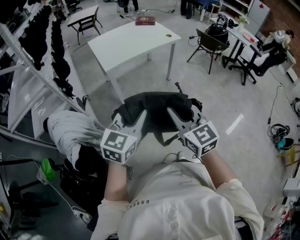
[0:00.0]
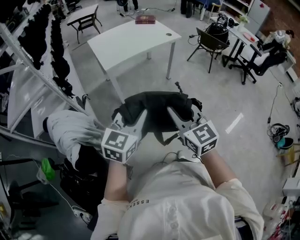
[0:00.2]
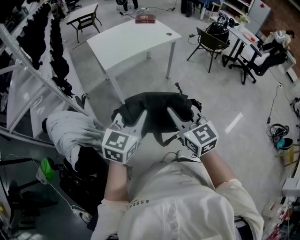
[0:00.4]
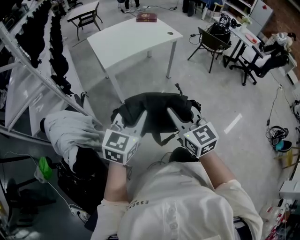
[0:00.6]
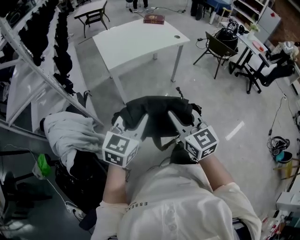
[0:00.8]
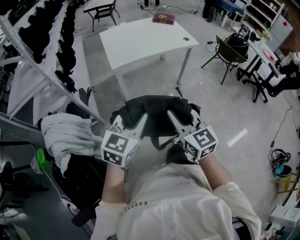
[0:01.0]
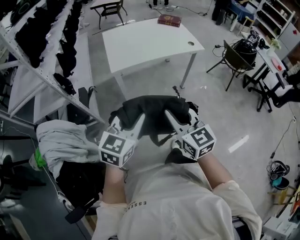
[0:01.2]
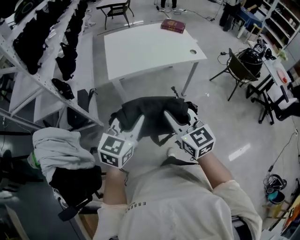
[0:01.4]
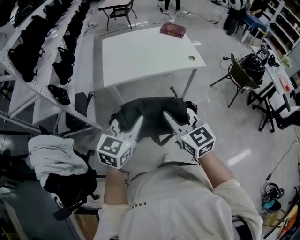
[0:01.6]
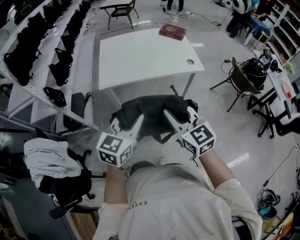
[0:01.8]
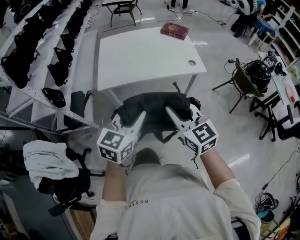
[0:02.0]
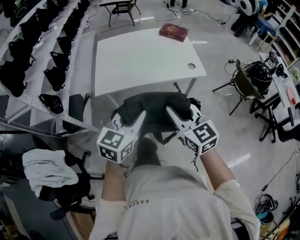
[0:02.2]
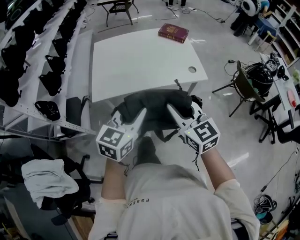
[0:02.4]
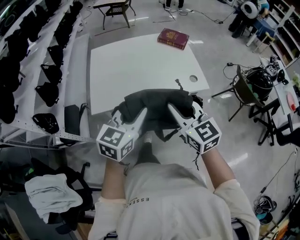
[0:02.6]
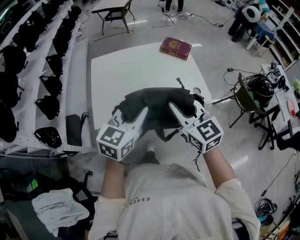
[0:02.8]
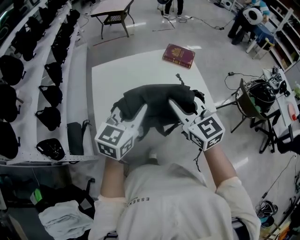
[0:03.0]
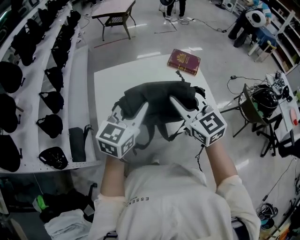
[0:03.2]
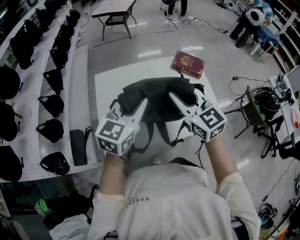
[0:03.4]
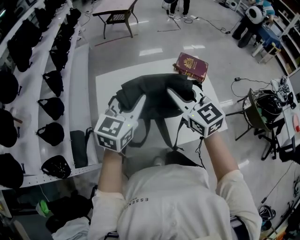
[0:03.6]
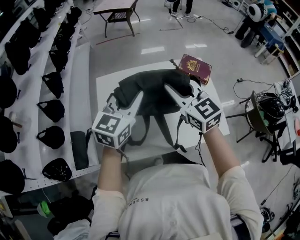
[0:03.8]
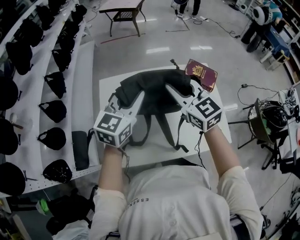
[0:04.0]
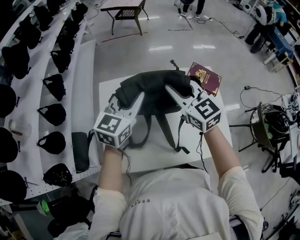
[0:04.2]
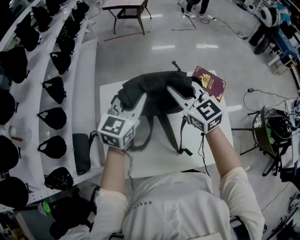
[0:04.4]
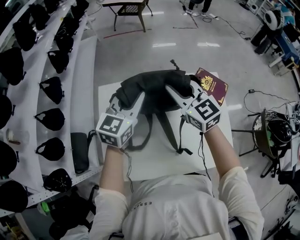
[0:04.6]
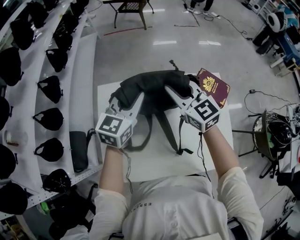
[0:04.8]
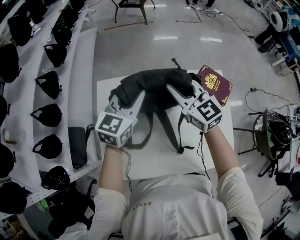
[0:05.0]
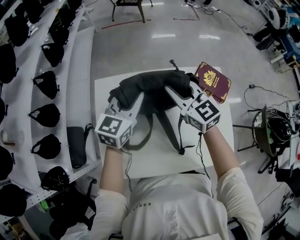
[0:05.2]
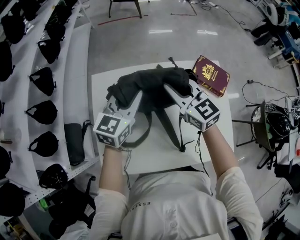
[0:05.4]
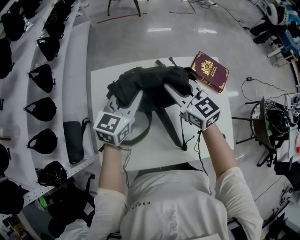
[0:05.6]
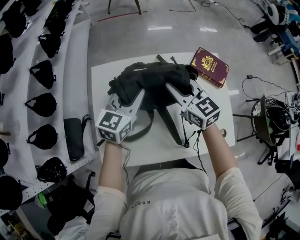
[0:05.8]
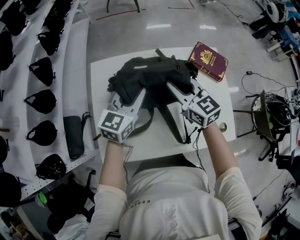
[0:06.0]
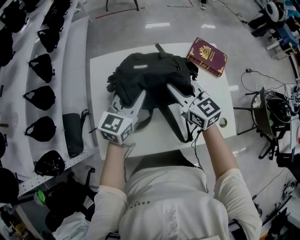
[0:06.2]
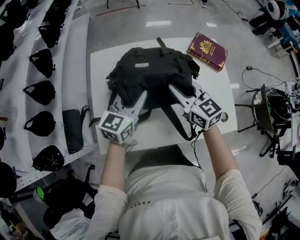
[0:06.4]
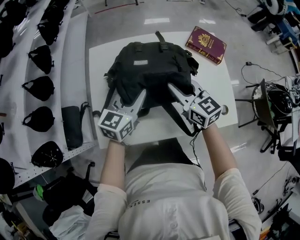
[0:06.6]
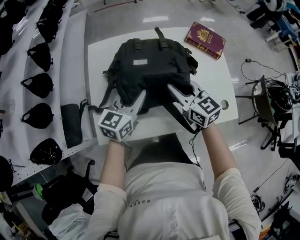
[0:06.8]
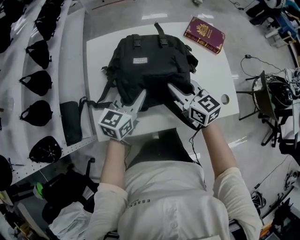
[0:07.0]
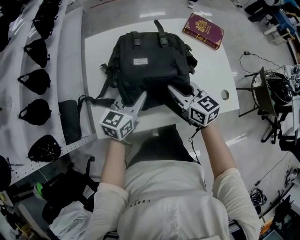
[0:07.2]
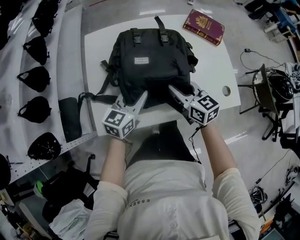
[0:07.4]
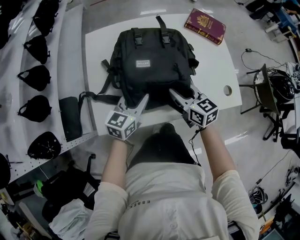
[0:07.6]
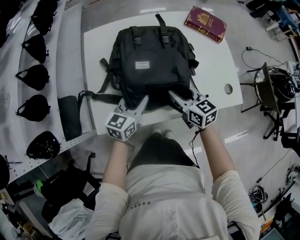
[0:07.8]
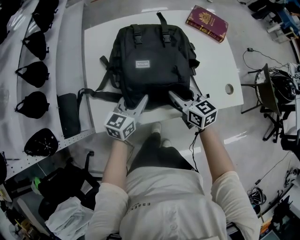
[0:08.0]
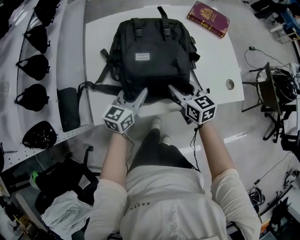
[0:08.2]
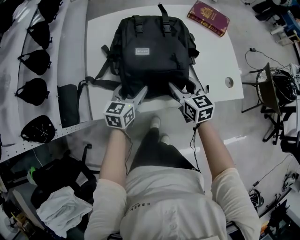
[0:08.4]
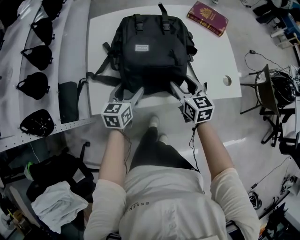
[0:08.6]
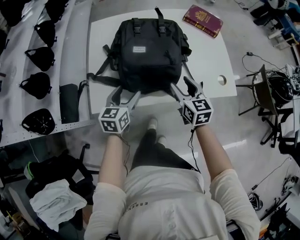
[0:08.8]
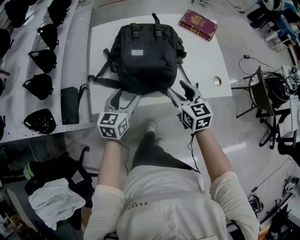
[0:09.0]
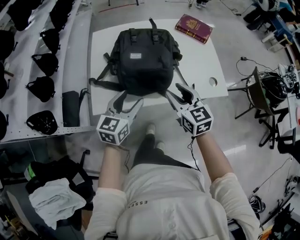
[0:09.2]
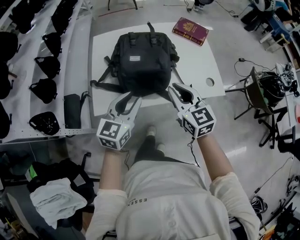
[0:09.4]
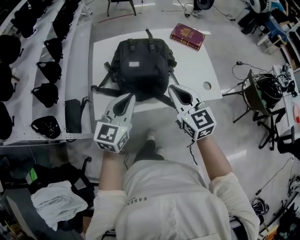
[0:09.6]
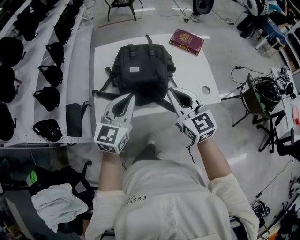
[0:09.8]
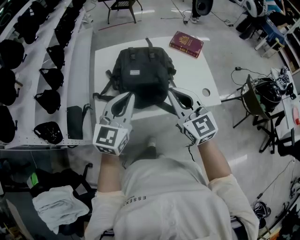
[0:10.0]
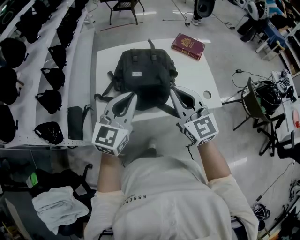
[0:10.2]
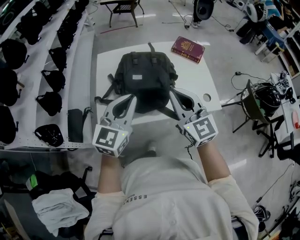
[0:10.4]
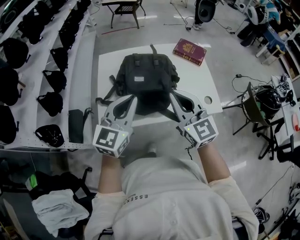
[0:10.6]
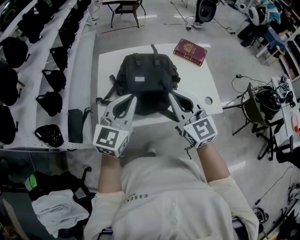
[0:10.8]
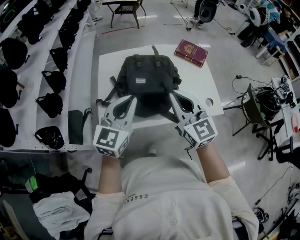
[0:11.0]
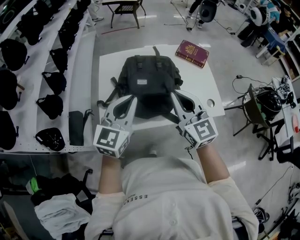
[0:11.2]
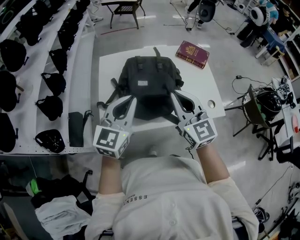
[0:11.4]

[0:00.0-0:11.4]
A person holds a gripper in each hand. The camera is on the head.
0:00.0 to 0:01.4: Both grippers move forward, some 20 cm.
0:01.4 to 0:02.8: The two grippers go some 40 cm forward.
0:02.8 to 0:04.2: The two grippers go some 40 cm forward.
0:04.2 to 0:05.6: Both grippers travel together downward, approximately 10 cm.
0:05.6 to 0:07.2: The grippers both shift backward and downward by about 20 cm.
0:07.2 to 0:08.6: The grippers both shift downward and backward by about 10 cm. The left gripper opens. Meanwhile the right gripper opens up.
0:08.6 to 0:10.0: Both grippers travel together upward, about 25 cm. The right gripper rotates some 30 degrees, and closes up, while the left gripper turns by about 30 degrees, and closes up.
0:10.0 to 0:11.4: The left gripper ends up some 5 cm from where it was. The right gripper moves about 5 cm.

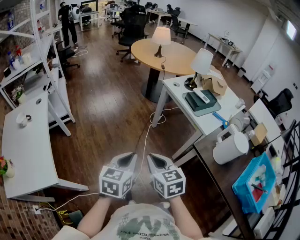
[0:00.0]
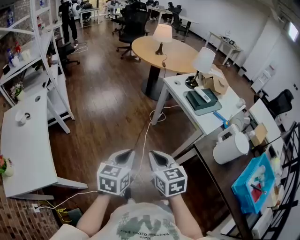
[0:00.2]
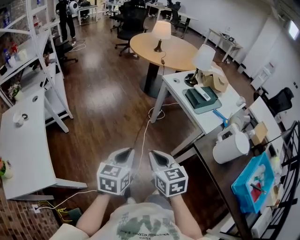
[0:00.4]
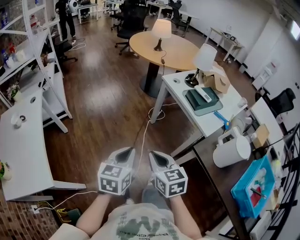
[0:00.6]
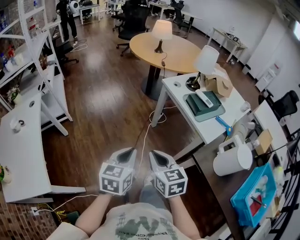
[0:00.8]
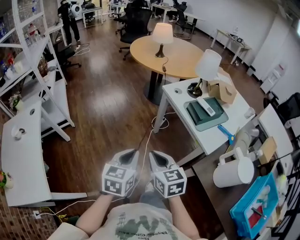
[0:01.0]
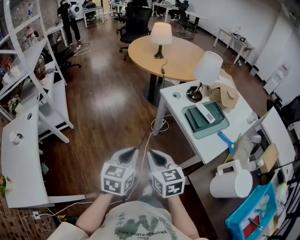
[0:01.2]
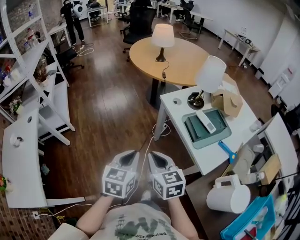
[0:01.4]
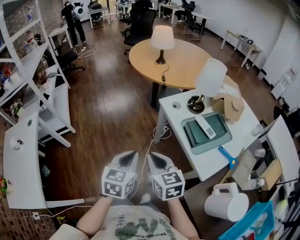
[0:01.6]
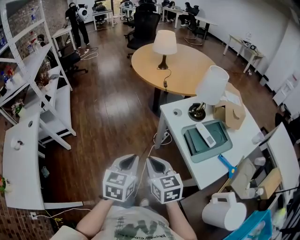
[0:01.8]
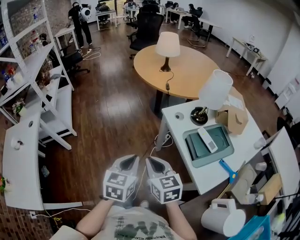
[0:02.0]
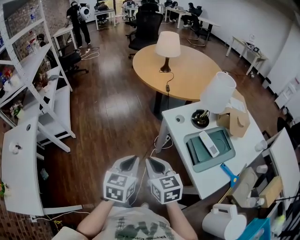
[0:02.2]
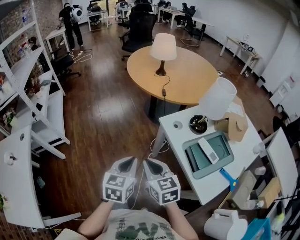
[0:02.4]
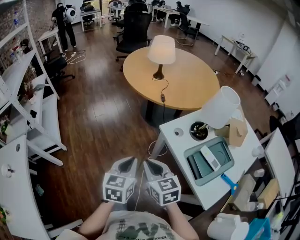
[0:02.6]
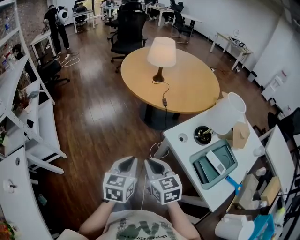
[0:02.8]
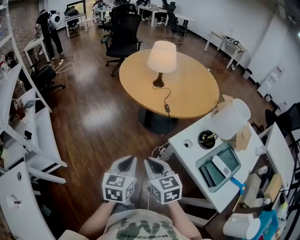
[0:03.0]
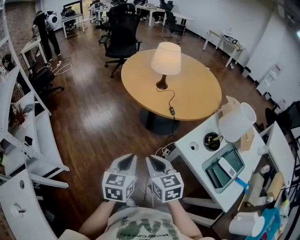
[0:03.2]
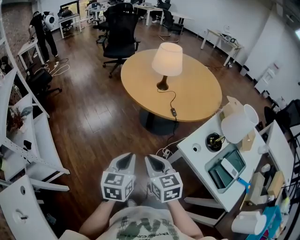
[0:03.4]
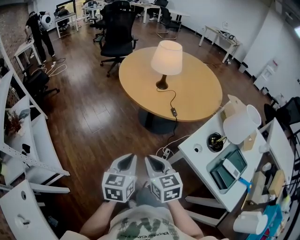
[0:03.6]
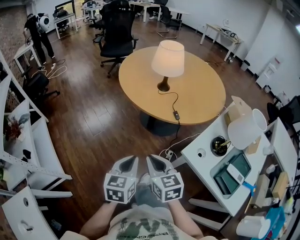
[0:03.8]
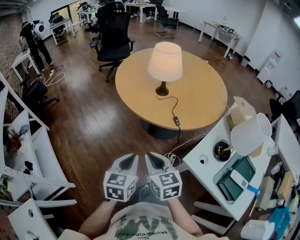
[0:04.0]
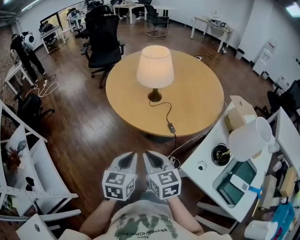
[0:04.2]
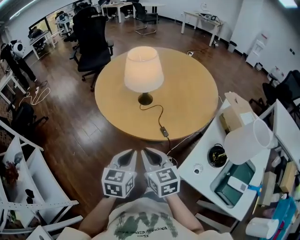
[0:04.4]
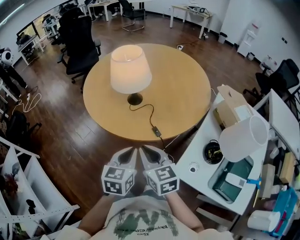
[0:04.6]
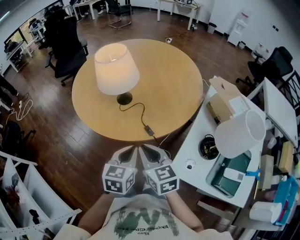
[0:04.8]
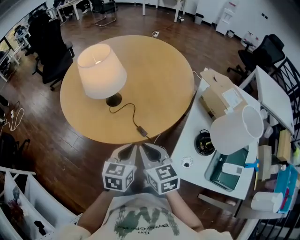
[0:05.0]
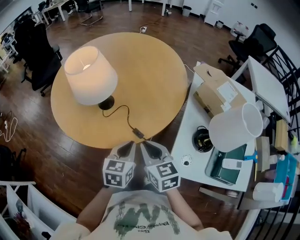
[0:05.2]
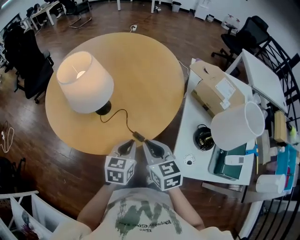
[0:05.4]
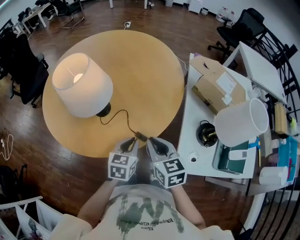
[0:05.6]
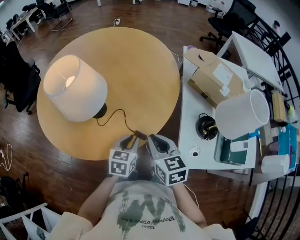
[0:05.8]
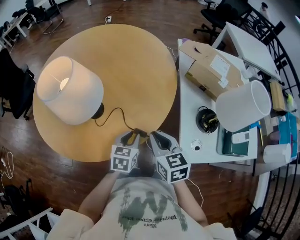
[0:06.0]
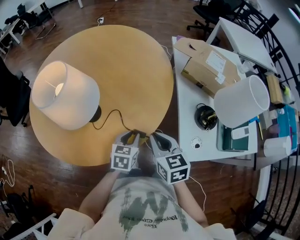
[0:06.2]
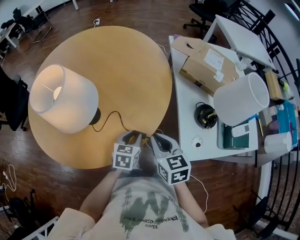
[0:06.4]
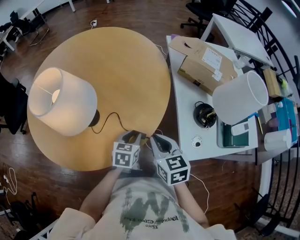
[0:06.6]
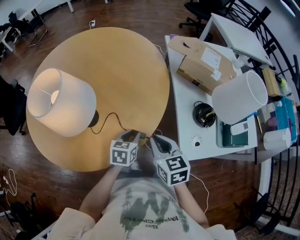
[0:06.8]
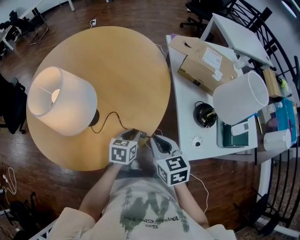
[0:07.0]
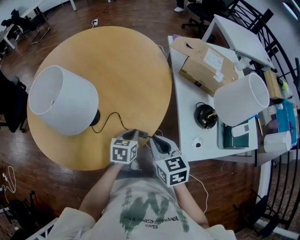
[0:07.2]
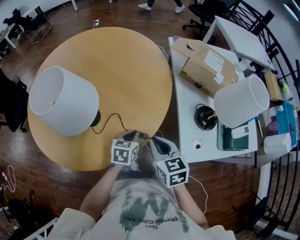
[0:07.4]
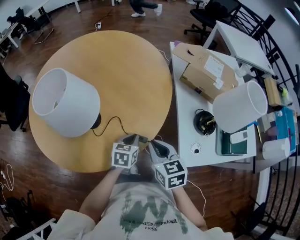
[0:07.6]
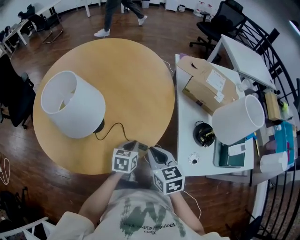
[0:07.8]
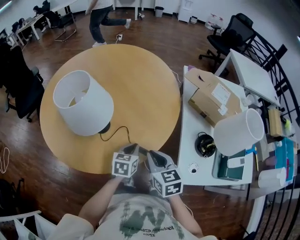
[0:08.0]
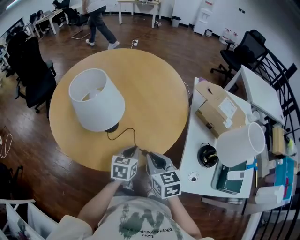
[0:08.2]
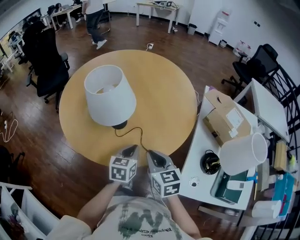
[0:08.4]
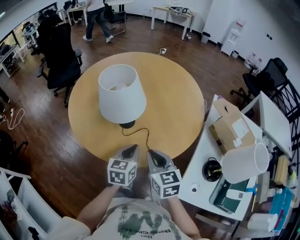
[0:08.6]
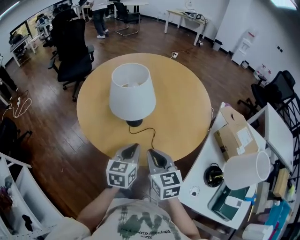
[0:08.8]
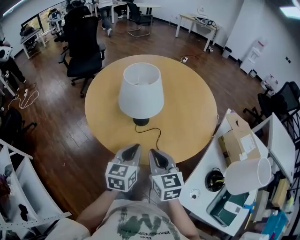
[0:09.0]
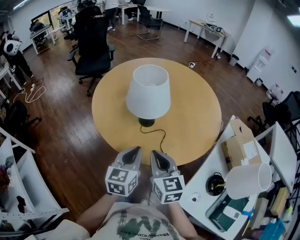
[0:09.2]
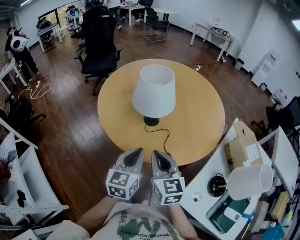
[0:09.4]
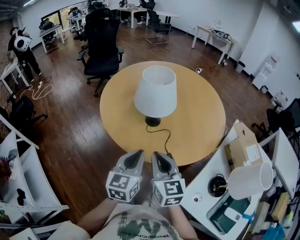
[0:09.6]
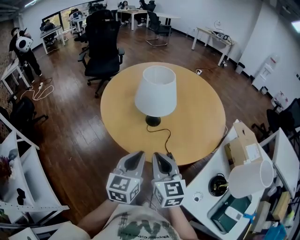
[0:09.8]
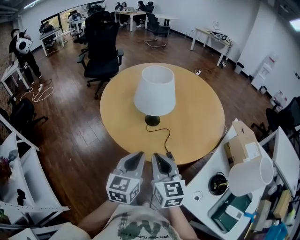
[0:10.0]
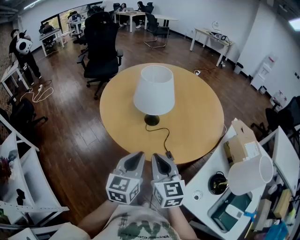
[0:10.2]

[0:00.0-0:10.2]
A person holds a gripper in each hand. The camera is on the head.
0:00.0 to 0:01.4: The grippers both shift forward and to the right by approximately 30 cm.
0:01.4 to 0:03.0: The grippers both shift forward by some 30 cm.
0:03.0 to 0:04.4: Both grippers travel together forward, roughly 30 cm.
0:04.4 to 0:05.8: The right gripper shifts by about 20 cm, and swivels some 40 degrees; the left gripper moves about 25 cm, and changes its angle by roughly 40 degrees.
0:05.8 to 0:07.2: The left gripper moves about 5 cm.
0:07.2 to 0:08.8: The right gripper shifts by approximately 15 cm, and changes its angle by about 40 degrees; the left gripper shifts roughly 15 cm upward, and turns by about 50 degrees.
0:08.8 to 0:10.2: The right gripper moves backward, approximately 10 cm; the left gripper shifts roughly 15 cm backward and upward.

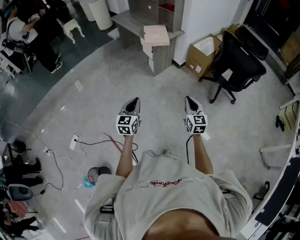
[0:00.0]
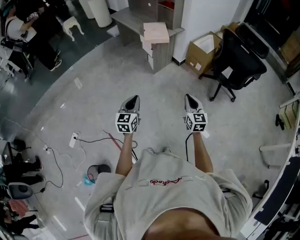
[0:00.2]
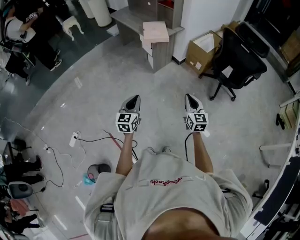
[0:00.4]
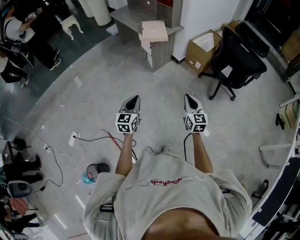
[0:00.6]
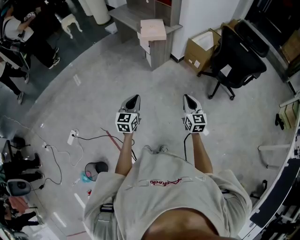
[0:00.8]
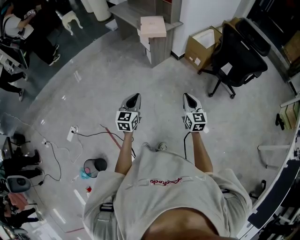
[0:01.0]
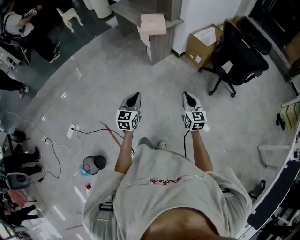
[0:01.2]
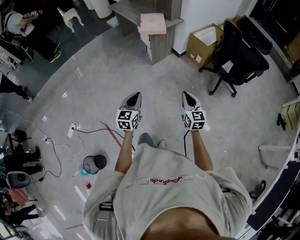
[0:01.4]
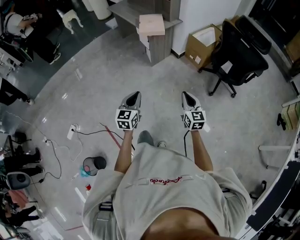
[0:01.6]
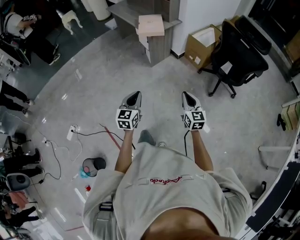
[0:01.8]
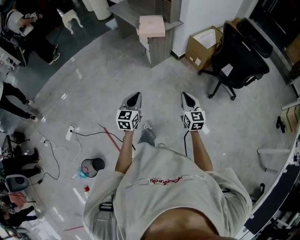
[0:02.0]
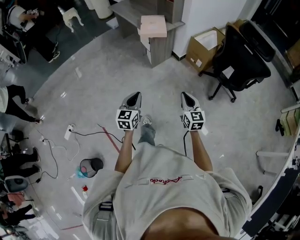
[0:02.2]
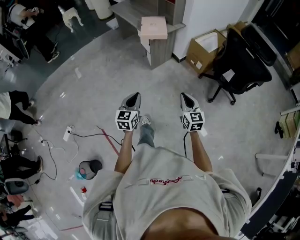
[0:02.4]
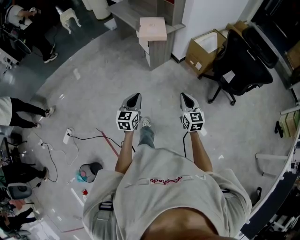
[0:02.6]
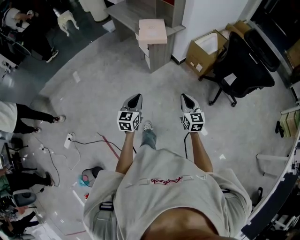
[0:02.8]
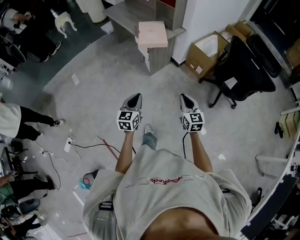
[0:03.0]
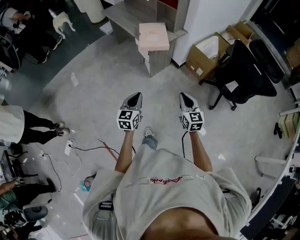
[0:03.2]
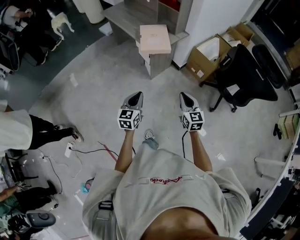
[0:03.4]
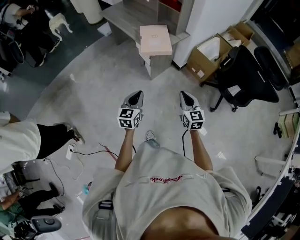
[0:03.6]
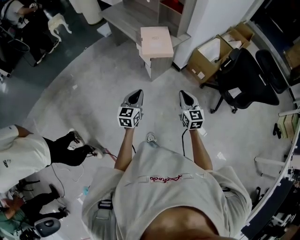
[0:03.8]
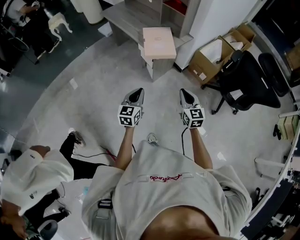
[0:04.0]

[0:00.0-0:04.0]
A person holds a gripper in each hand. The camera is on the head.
0:00.0 to 0:01.4: The left gripper heads to the right, covering about 10 cm. Meanwhile the right gripper changes place by about 5 cm.
0:01.4 to 0:02.6: The grippers both shift forward by about 10 cm.
0:02.6 to 0:04.0: The left gripper travels forward by about 25 cm, while the right gripper shifts some 30 cm forward and to the left.
